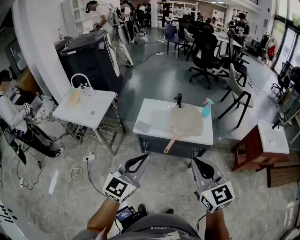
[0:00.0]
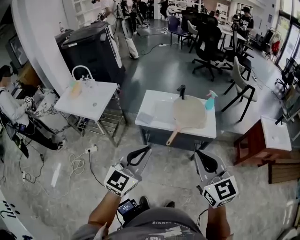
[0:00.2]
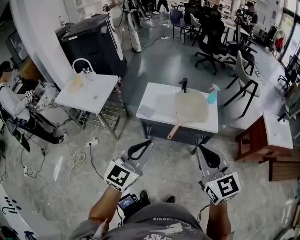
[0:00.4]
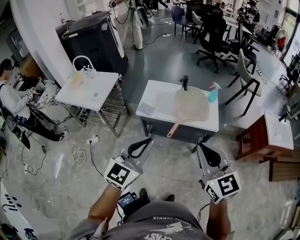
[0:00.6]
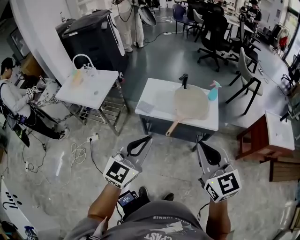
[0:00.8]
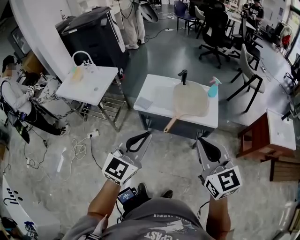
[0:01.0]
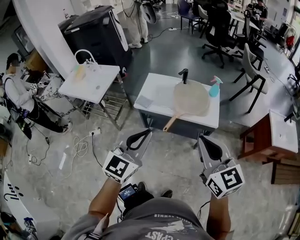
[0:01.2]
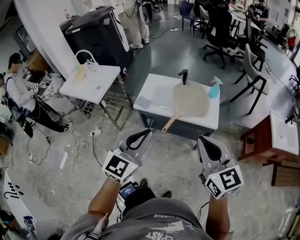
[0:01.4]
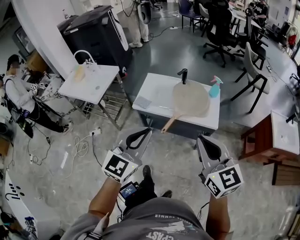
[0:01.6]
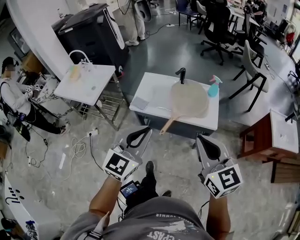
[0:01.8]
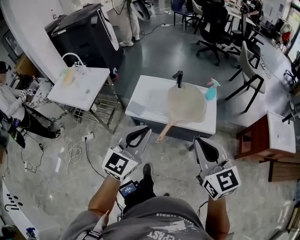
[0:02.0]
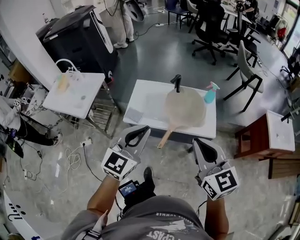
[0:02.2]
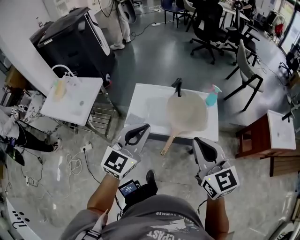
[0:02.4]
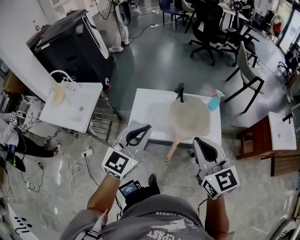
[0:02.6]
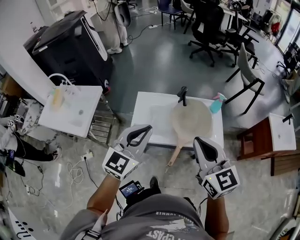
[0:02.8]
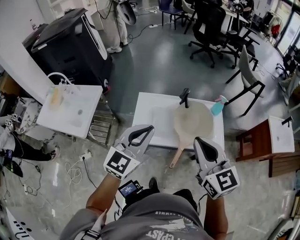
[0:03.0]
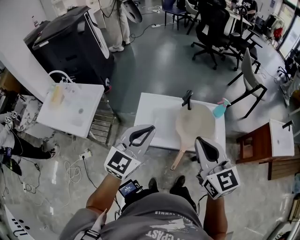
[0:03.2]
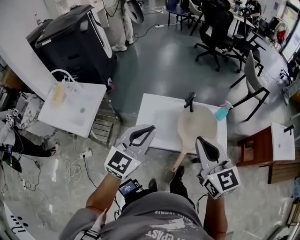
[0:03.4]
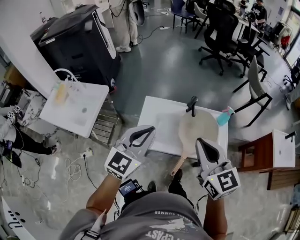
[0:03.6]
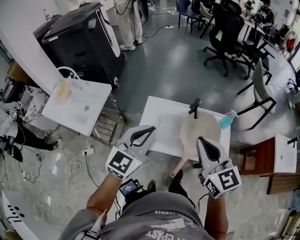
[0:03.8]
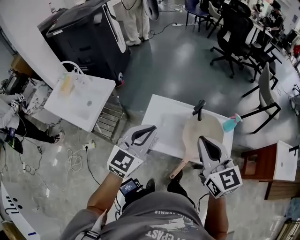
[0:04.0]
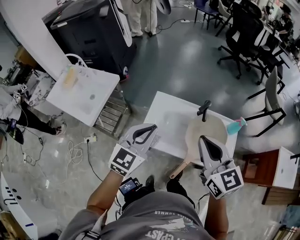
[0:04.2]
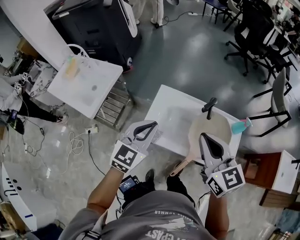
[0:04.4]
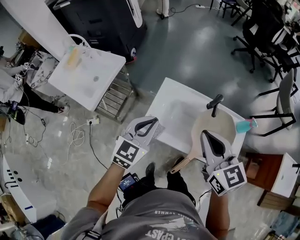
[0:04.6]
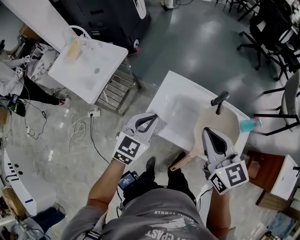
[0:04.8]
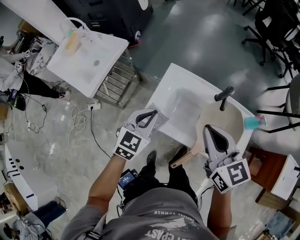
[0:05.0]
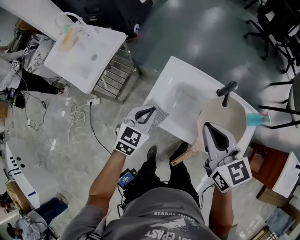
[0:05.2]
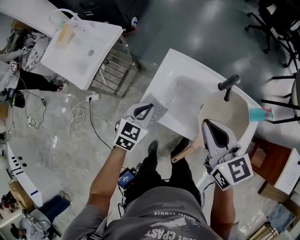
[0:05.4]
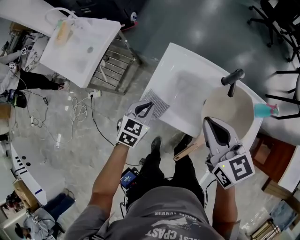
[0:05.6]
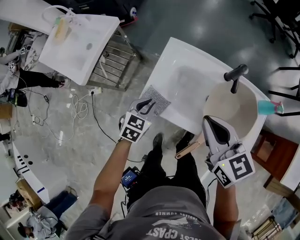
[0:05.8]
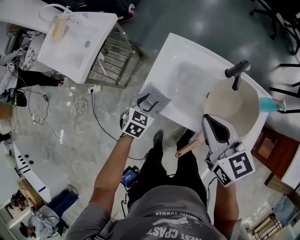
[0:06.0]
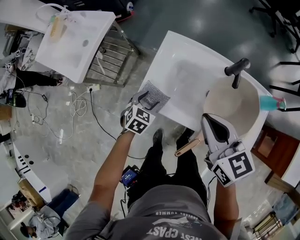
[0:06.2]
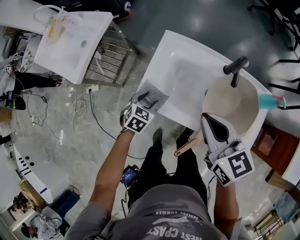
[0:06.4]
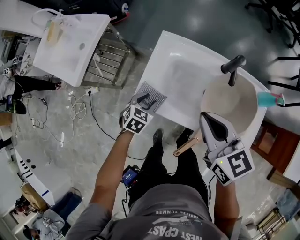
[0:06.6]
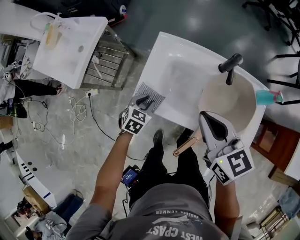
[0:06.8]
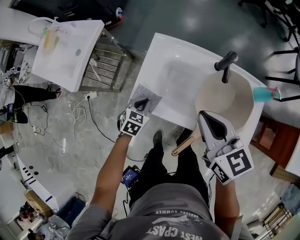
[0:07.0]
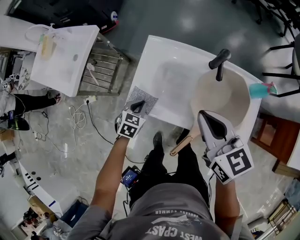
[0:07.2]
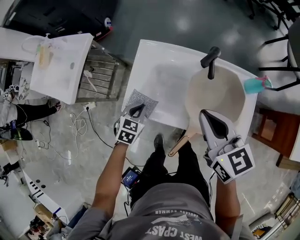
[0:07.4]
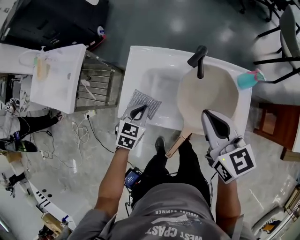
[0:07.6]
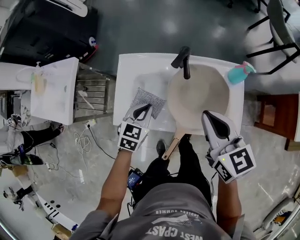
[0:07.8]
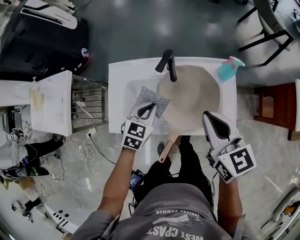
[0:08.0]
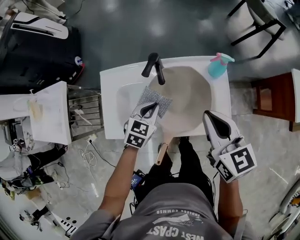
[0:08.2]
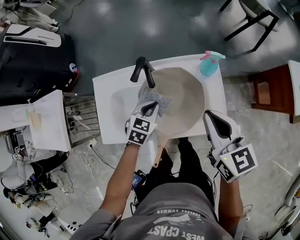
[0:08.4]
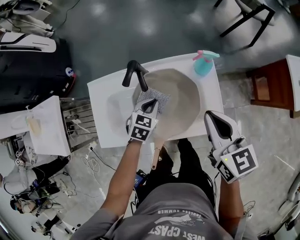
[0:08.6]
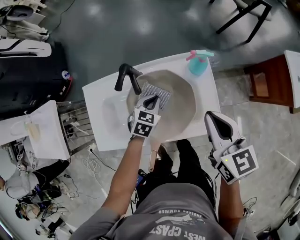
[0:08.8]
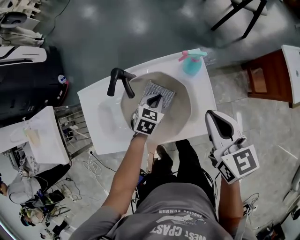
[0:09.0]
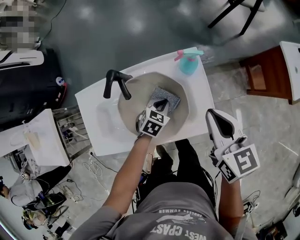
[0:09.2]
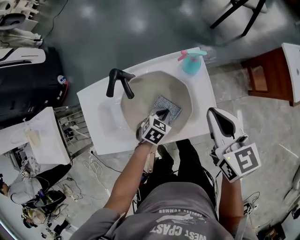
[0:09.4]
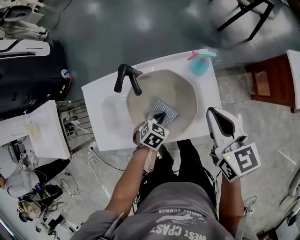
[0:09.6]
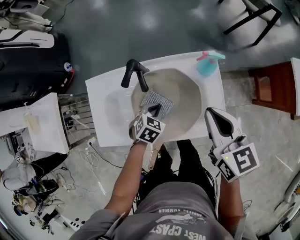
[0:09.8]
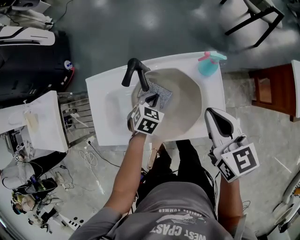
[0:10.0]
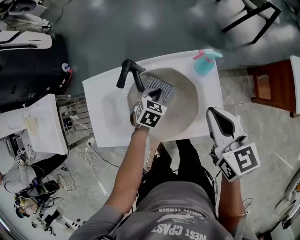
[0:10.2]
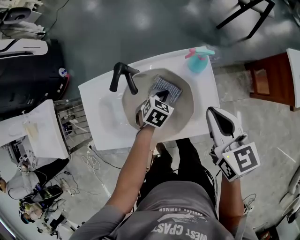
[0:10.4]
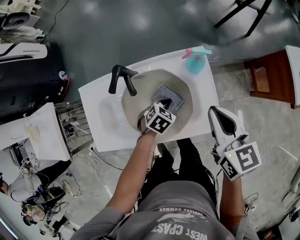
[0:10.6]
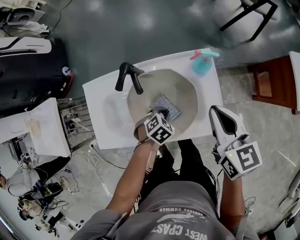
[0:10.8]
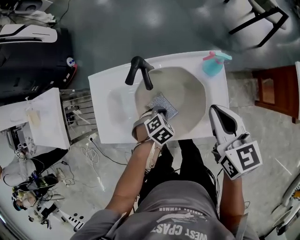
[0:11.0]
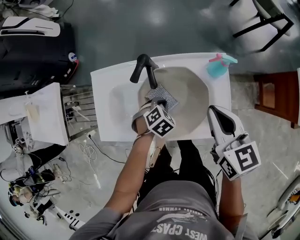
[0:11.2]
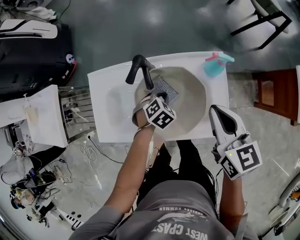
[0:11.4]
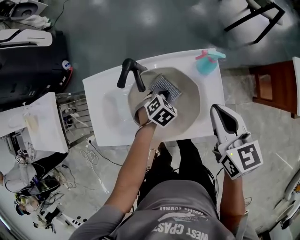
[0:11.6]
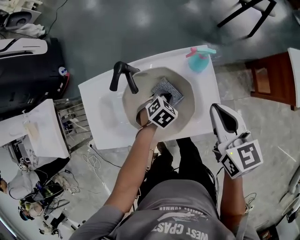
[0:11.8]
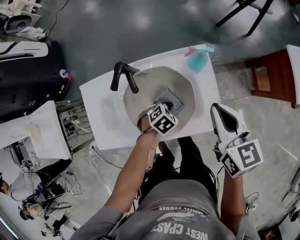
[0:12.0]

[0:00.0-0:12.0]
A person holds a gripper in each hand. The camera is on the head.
0:00.0 to 0:01.6: Both grippers move to the right and forward, approximately 10 cm.
0:01.6 to 0:03.0: The grippers both shift forward and to the left by roughly 30 cm.
0:03.0 to 0:04.4: The right gripper shifts some 15 cm forward. Meanwhile the left gripper moves forward, downward and to the left, roughly 15 cm.
0:04.4 to 0:06.0: The right gripper is displaced downward by about 20 cm; the left gripper goes some 35 cm downward, tilts its fingers roughly 30 degrees downward, and opens its fingers.
0:06.0 to 0:07.6: The two grippers go roughly 10 cm to the right. The left gripper closes up.
0:07.6 to 0:09.0: The left gripper moves about 35 cm, and rotates about 20 degrees. Meanwhile the right gripper moves about 30 cm, and changes its angle by some 30 degrees.
0:09.0 to 0:10.4: The left gripper moves left and right over roughly 10 cm, changing direction 2 times.

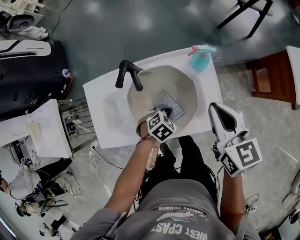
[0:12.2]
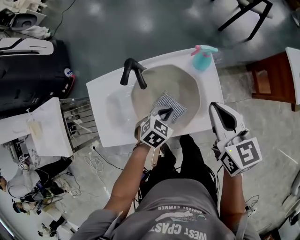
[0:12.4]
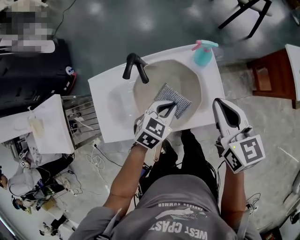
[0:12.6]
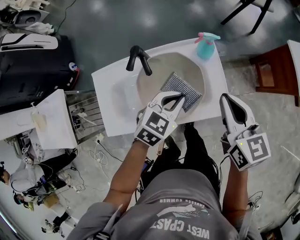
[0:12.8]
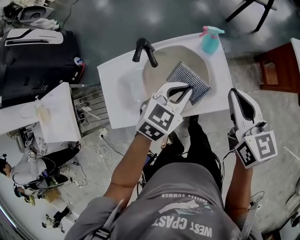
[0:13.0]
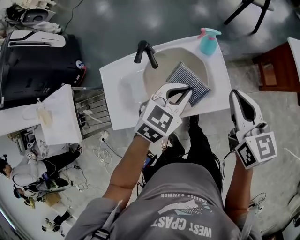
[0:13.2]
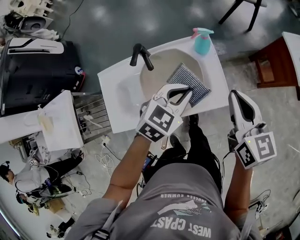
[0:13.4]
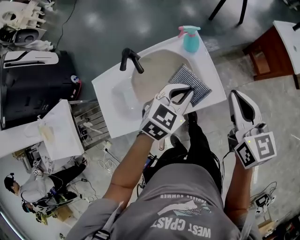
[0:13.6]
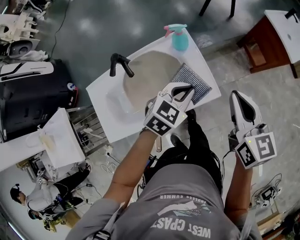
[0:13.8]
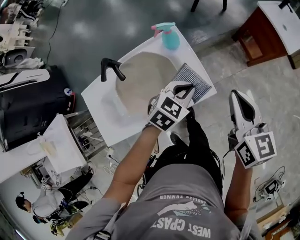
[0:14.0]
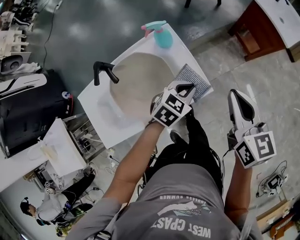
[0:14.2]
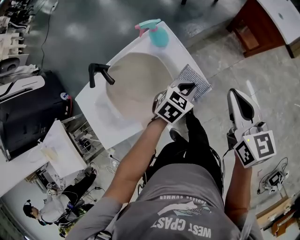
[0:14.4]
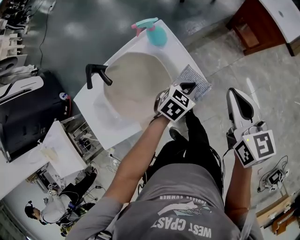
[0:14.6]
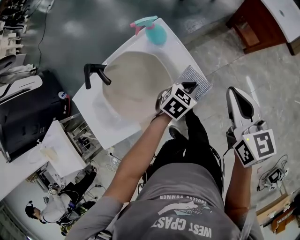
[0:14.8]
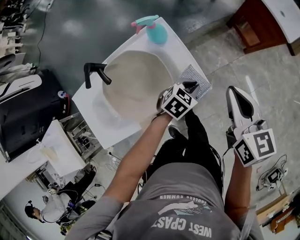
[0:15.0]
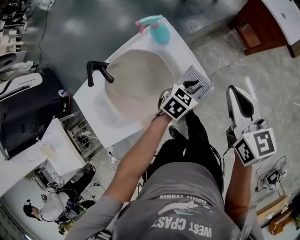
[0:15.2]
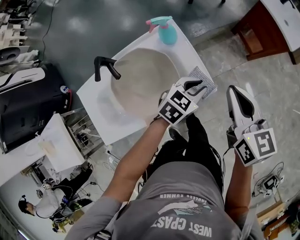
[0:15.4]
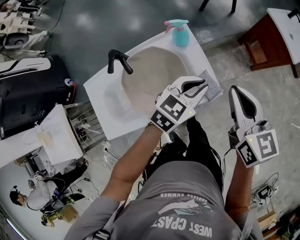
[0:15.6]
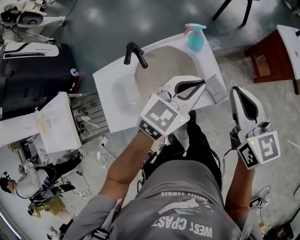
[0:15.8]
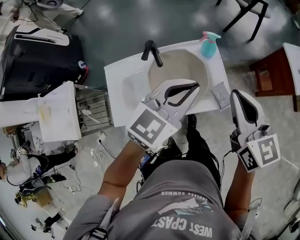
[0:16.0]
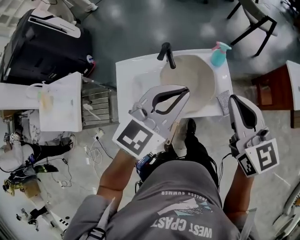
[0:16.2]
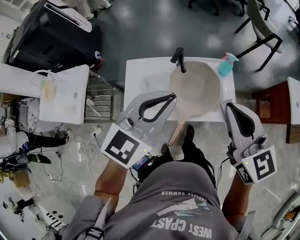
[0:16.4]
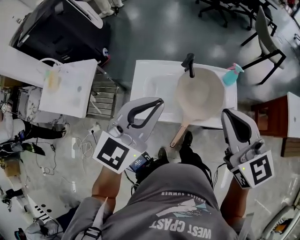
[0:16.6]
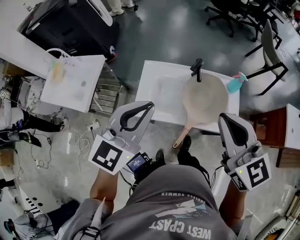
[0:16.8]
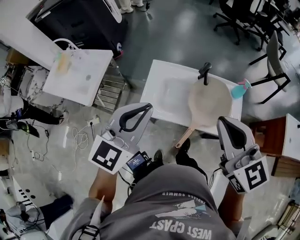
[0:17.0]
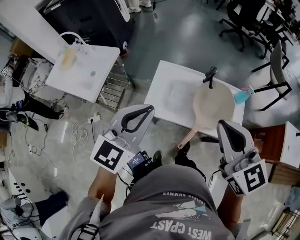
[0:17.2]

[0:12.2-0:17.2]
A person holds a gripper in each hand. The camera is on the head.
0:12.2 to 0:13.8: The left gripper heads upward and to the right, covering some 25 cm, and turns by roughly 30 degrees. The right gripper shifts about 15 cm to the right and backward.
0:13.8 to 0:15.6: The left gripper travels downward and back again, approximately 15 cm each way.
0:15.6 to 0:17.2: The left gripper moves some 60 cm, and turns by roughly 60 degrees, while the right gripper changes place by approximately 50 cm, and turns by roughly 50 degrees.

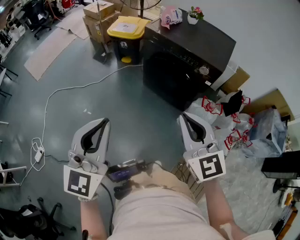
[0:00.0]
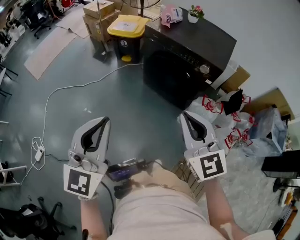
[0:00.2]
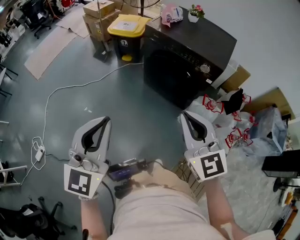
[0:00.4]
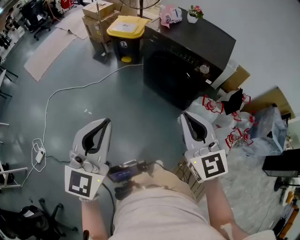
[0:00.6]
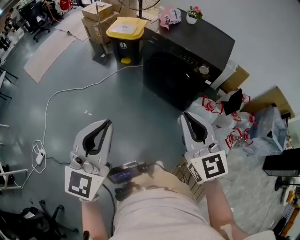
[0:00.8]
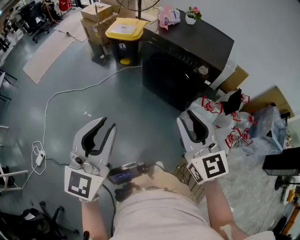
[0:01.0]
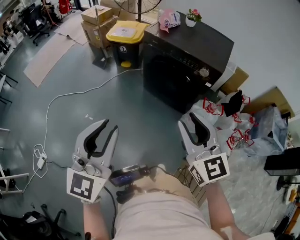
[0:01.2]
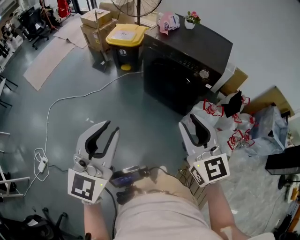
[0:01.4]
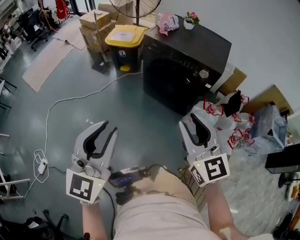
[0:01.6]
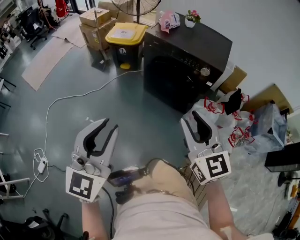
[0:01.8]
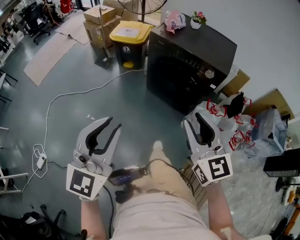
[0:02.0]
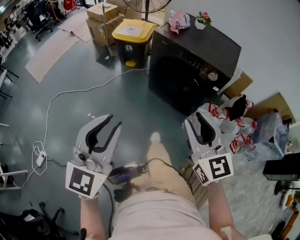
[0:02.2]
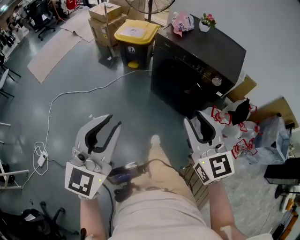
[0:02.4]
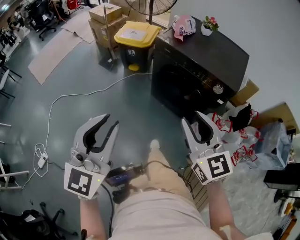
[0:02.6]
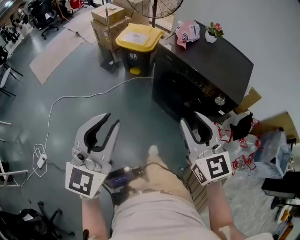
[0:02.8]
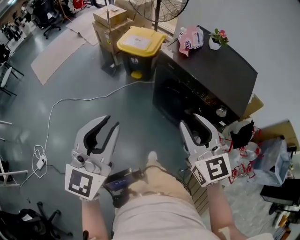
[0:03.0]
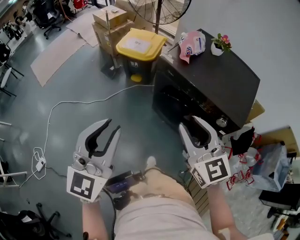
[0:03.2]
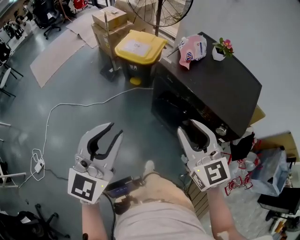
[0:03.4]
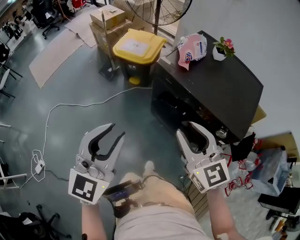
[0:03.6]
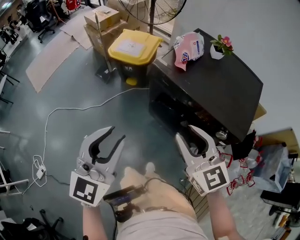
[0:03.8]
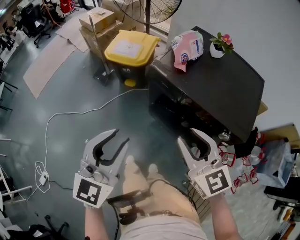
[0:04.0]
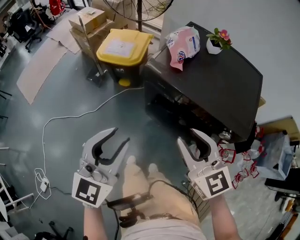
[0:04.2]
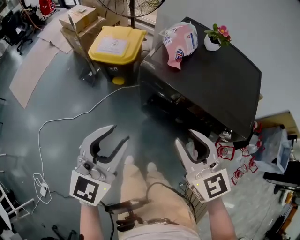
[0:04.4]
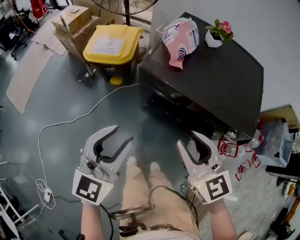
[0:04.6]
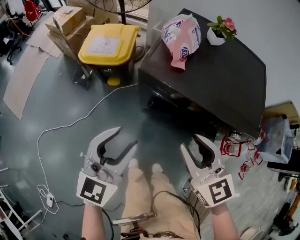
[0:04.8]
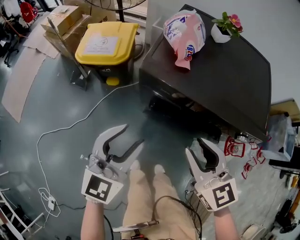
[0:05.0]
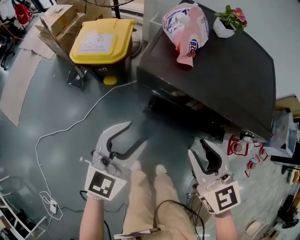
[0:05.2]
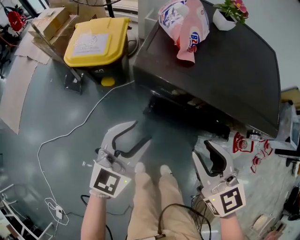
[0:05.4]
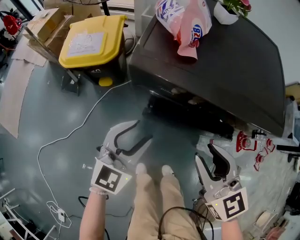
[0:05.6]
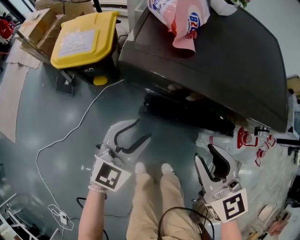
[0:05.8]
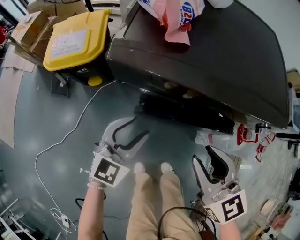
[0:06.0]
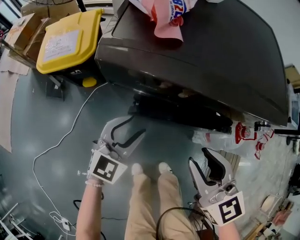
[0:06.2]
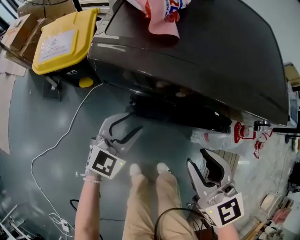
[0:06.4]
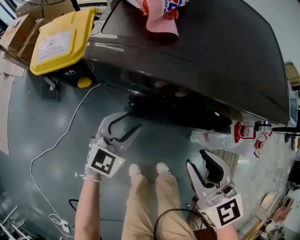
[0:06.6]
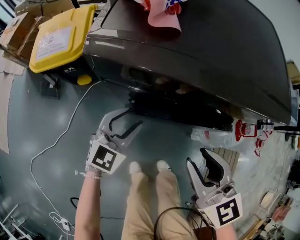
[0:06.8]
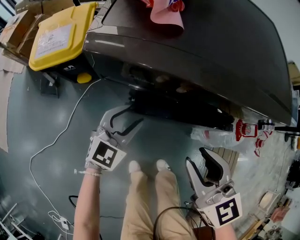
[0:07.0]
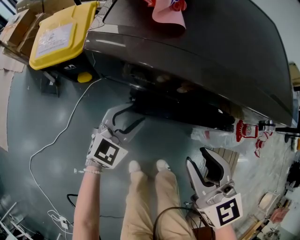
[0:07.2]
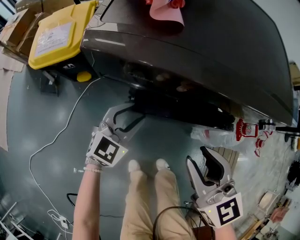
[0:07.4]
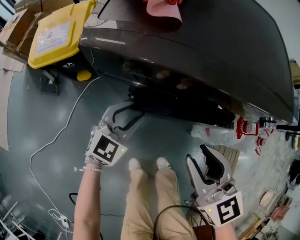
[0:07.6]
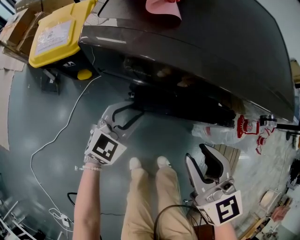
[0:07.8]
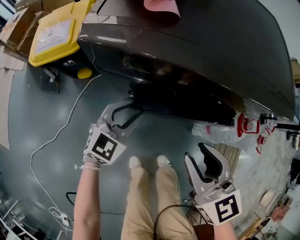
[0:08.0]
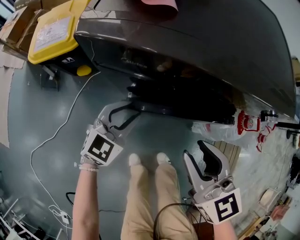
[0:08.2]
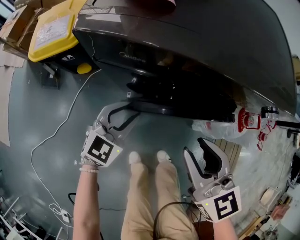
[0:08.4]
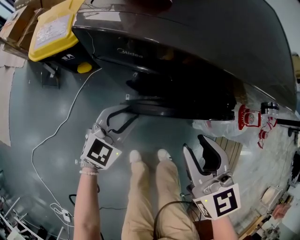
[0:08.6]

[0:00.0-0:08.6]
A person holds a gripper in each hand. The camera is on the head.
0:00.0 to 0:01.4: The right gripper opens up.
0:01.4 to 0:02.8: Both grippers travel together forward, roughly 15 cm.
0:02.8 to 0:04.4: The two grippers go approximately 25 cm forward.
0:04.4 to 0:05.8: The right gripper moves downward, about 15 cm. Meanwhile the left gripper heads downward and forward, covering about 30 cm, and changes its angle by some 20 degrees.
0:05.8 to 0:07.2: The right gripper moves downward, approximately 5 cm, while the left gripper moves downward, about 10 cm.
0:07.2 to 0:08.6: The left gripper ends up about 5 cm from where it was.
